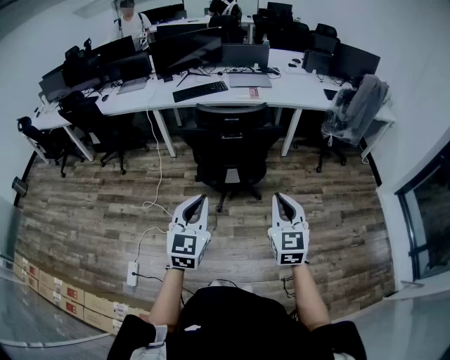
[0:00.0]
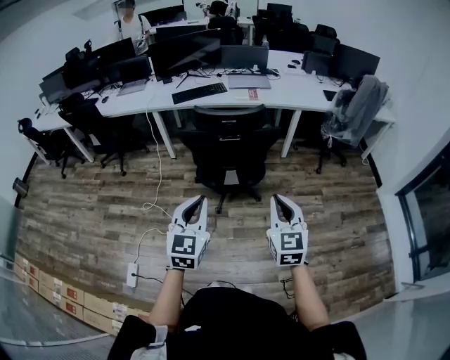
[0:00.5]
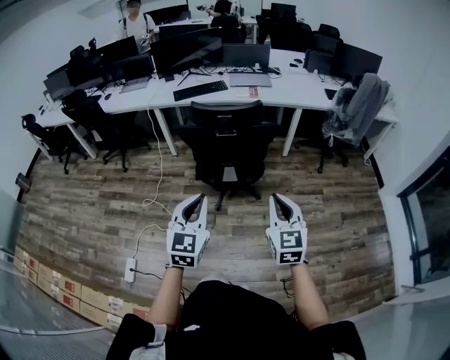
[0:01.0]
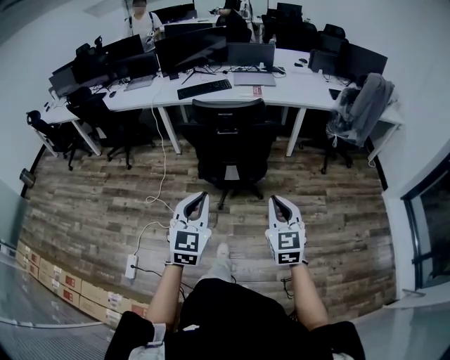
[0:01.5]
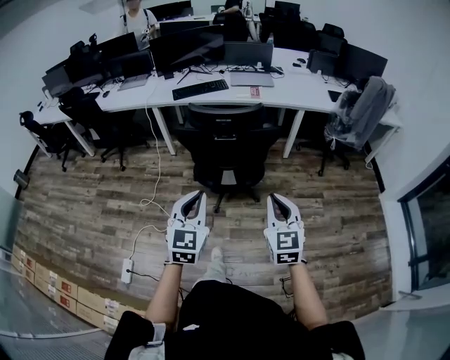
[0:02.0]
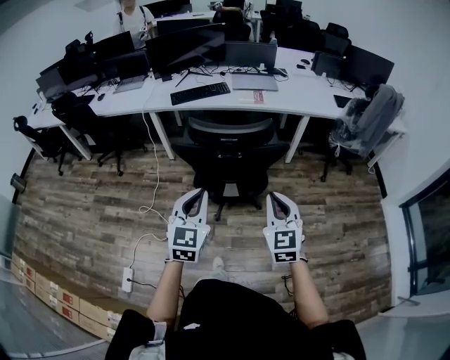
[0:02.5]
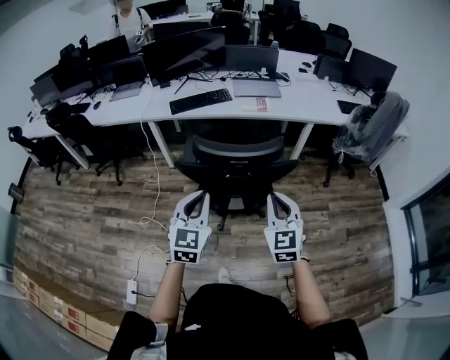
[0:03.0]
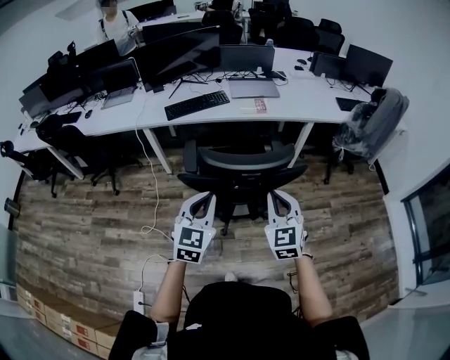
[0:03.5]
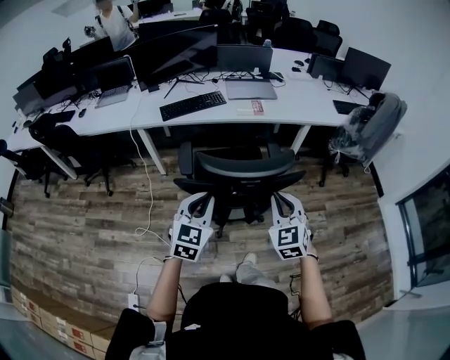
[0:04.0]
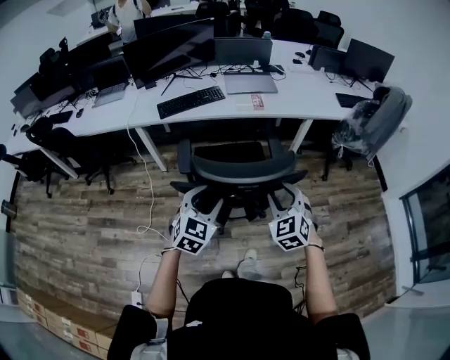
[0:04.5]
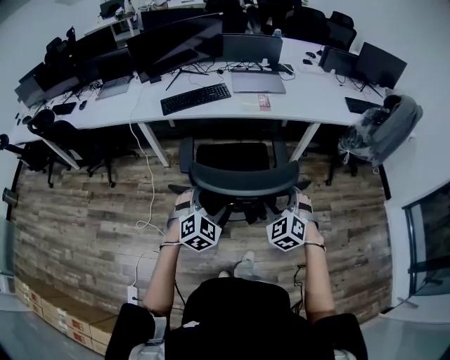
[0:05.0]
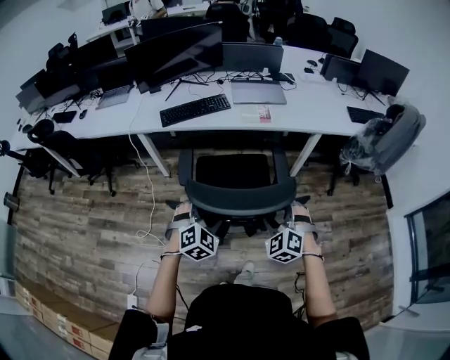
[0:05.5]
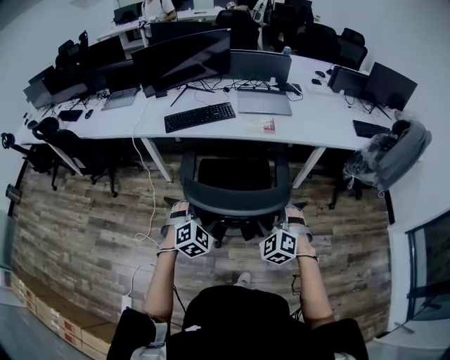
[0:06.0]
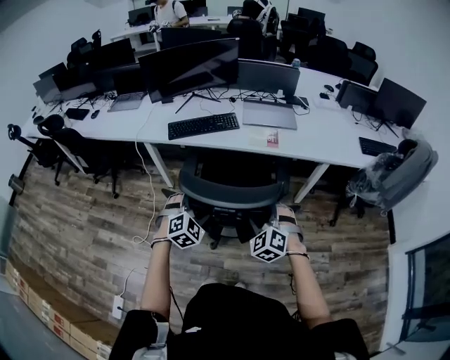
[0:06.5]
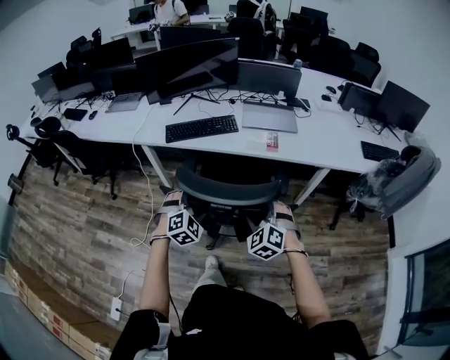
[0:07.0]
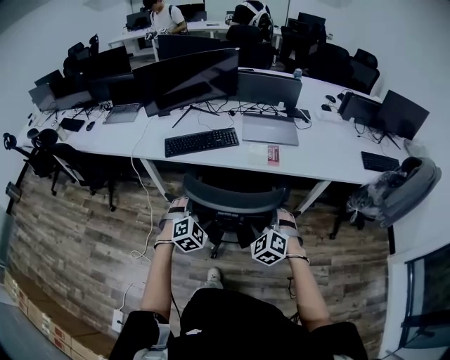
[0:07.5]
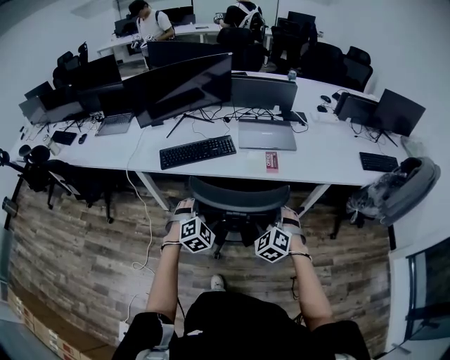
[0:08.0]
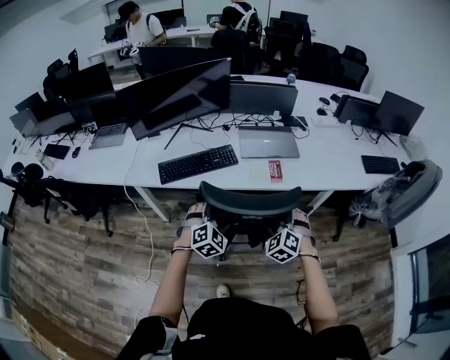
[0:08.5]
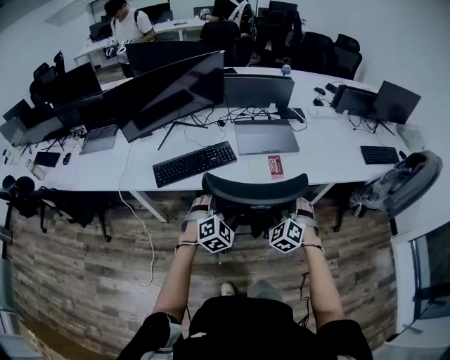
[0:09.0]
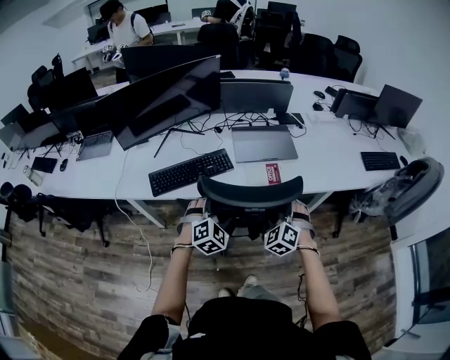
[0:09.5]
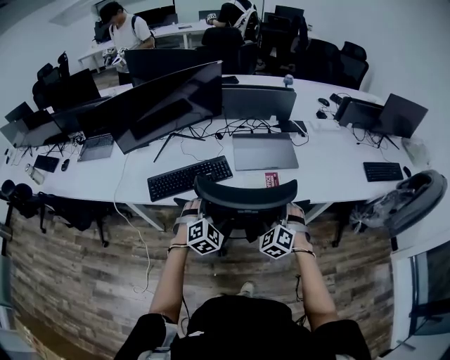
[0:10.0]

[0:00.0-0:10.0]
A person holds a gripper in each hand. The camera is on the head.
0:00.0 to 0:02.0: The left gripper changes place by some 5 cm. The right gripper shifts by approximately 5 cm.
0:02.0 to 0:04.0: The two grippers go roughly 30 cm forward.
0:04.0 to 0:06.0: Both grippers move forward and downward, roughly 20 cm. The right gripper changes its angle by about 30 degrees, and opens its fingers. Meanwhile the left gripper changes its angle by some 40 degrees, and opens.
0:06.0 to 0:08.0: Both grippers travel together forward, roughly 25 cm.
0:08.0 to 0:10.0: Both grippers travel together forward, approximately 20 cm.

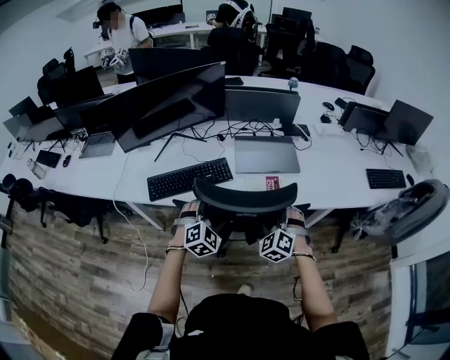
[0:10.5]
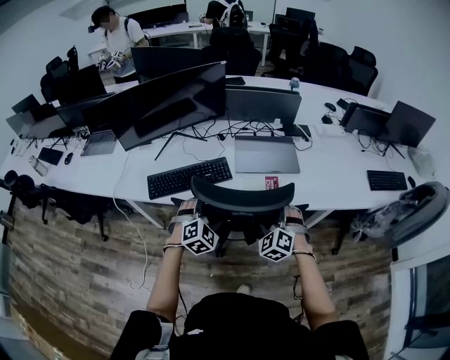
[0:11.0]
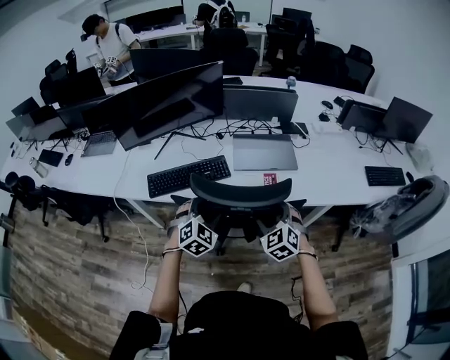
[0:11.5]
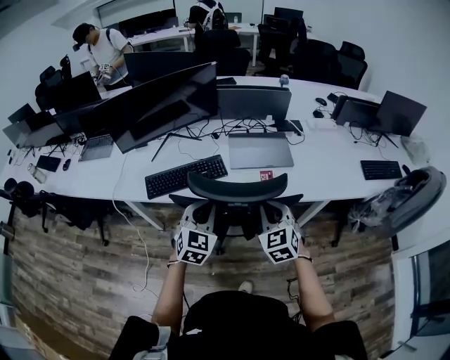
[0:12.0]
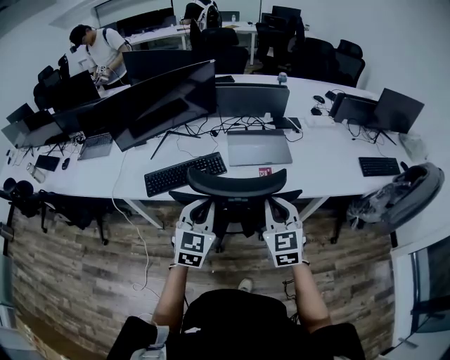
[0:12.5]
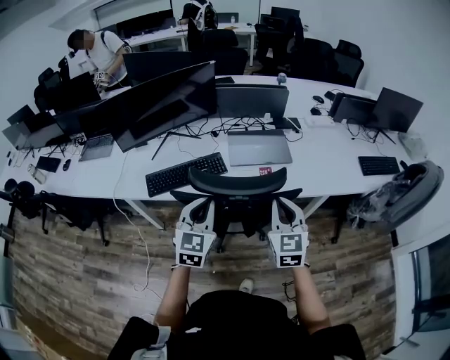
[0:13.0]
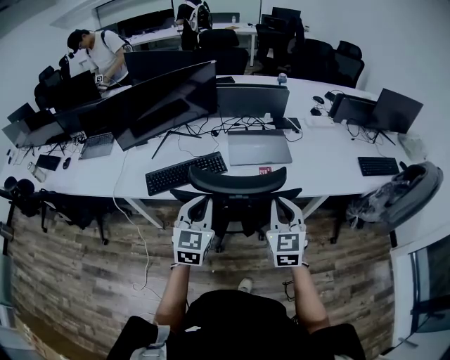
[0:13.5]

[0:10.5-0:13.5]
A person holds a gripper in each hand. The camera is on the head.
0:10.5 to 0:12.0: Both grippers move upward, about 10 cm. The right gripper swivels approximately 30 degrees, and closes up; the left gripper rotates about 30 degrees, and closes up.
0:12.0 to 0:13.5: The left gripper changes place by some 5 cm, while the right gripper shifts roughly 5 cm upward.

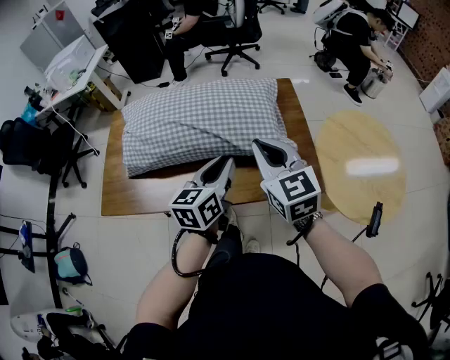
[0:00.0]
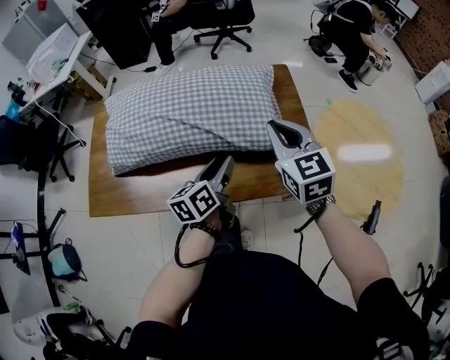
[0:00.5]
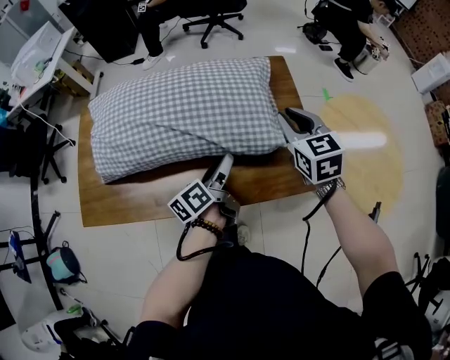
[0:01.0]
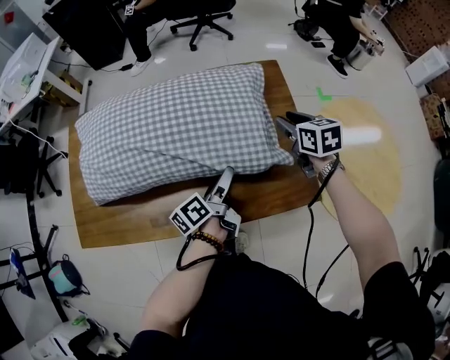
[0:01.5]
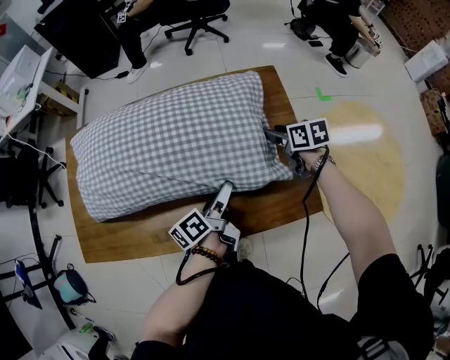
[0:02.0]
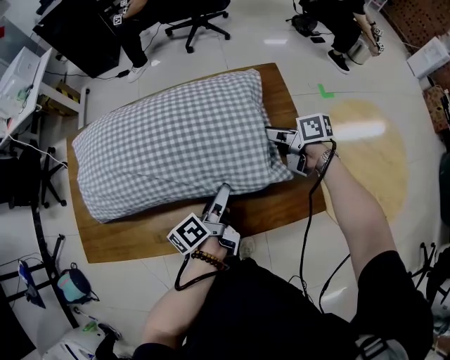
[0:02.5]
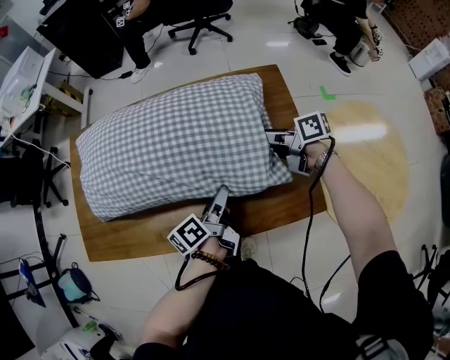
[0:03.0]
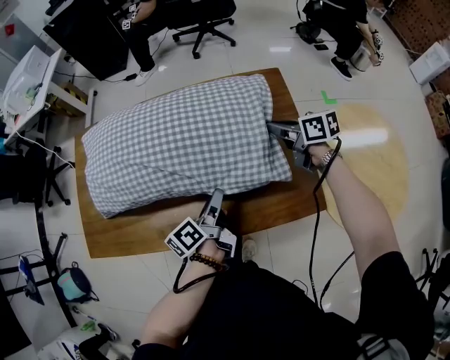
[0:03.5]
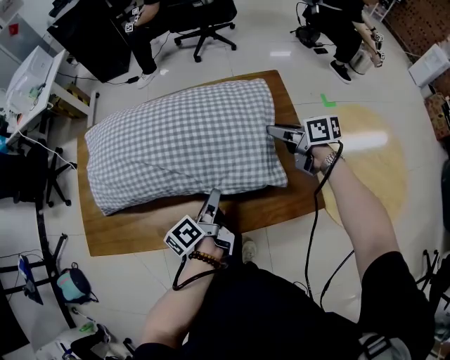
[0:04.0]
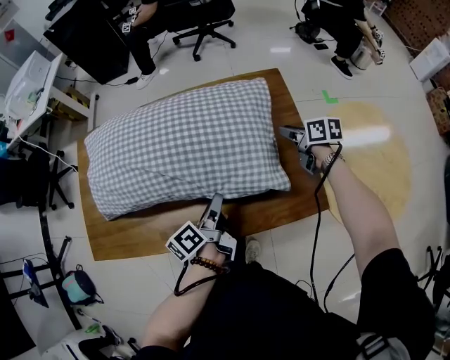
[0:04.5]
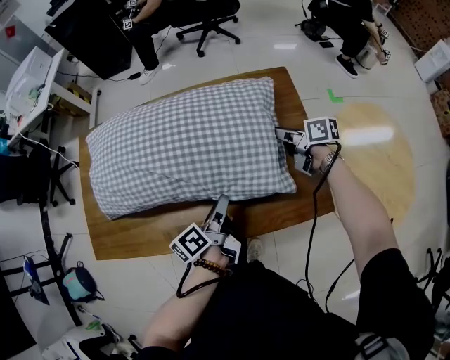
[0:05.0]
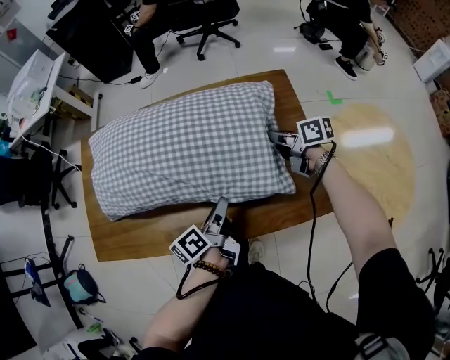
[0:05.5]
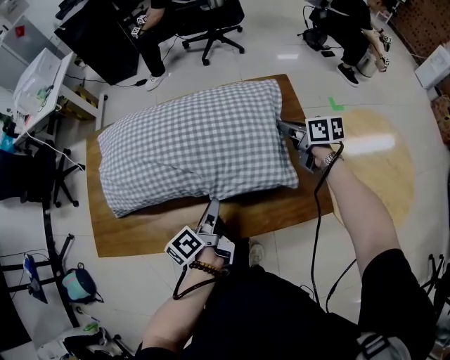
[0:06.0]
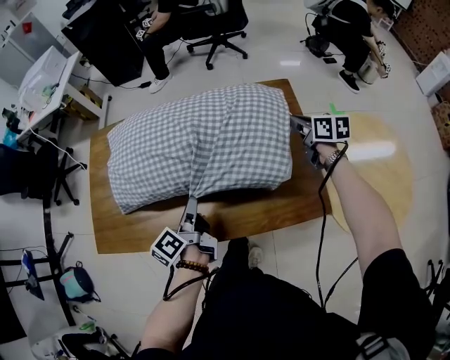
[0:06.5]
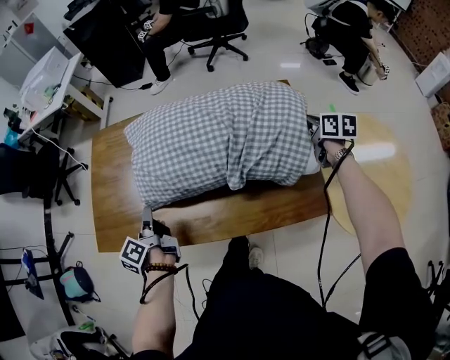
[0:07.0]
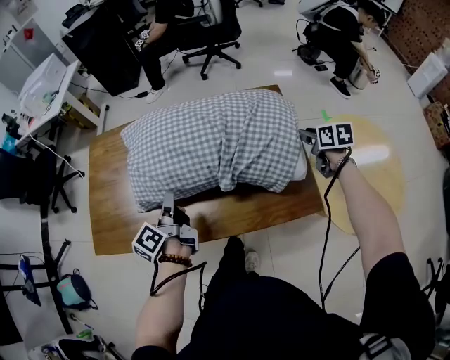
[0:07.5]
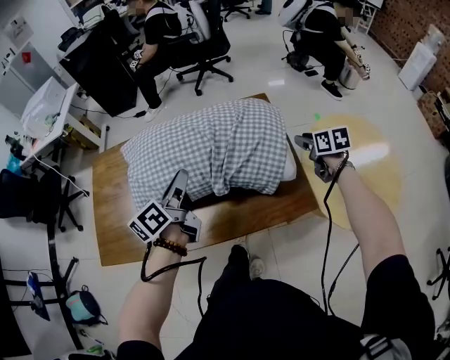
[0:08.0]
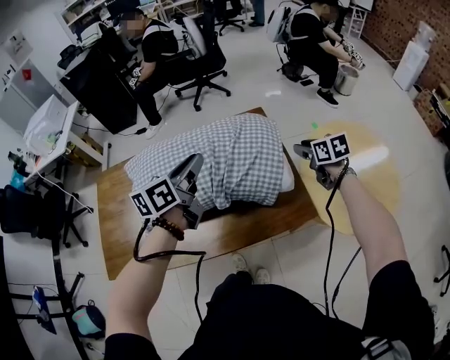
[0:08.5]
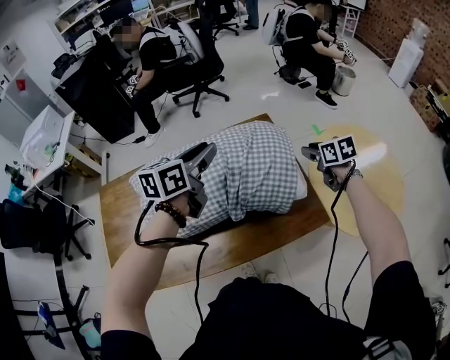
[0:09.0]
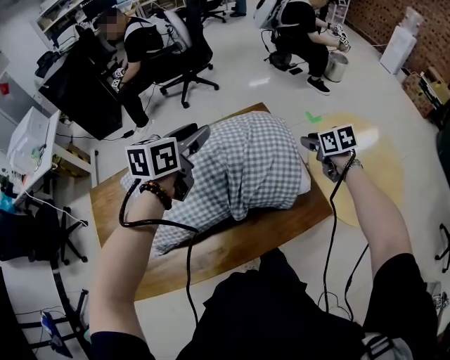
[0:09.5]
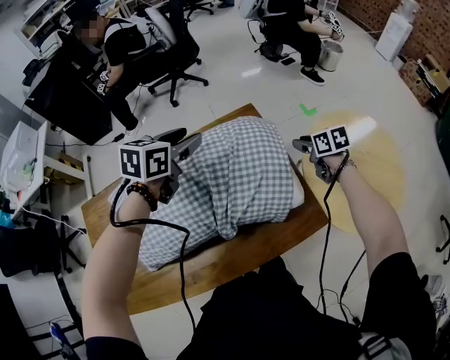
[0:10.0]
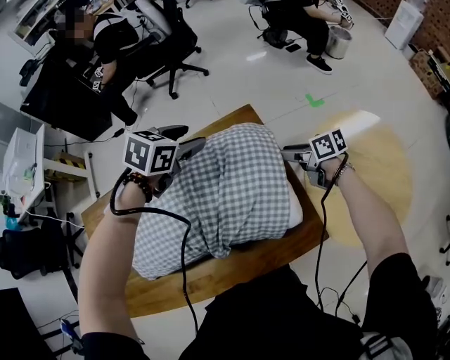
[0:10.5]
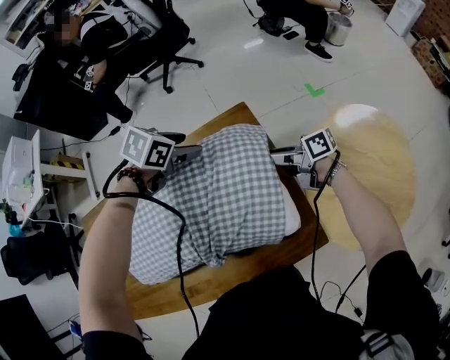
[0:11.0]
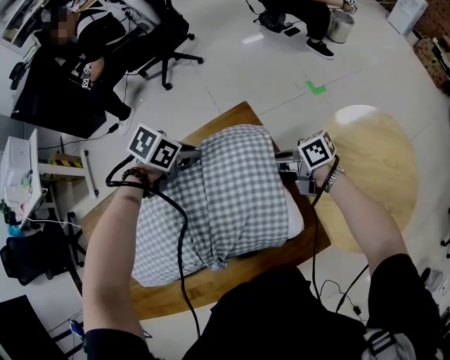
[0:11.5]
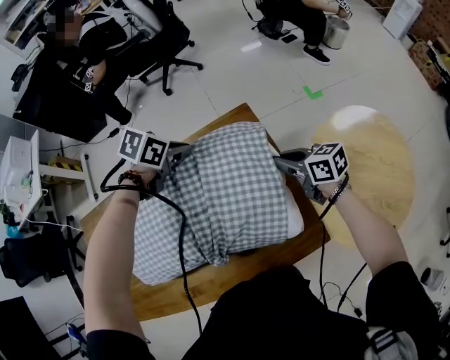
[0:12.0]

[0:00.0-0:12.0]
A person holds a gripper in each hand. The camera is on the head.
0:00.0 to 0:02.0: The left gripper moves forward and downward, approximately 30 cm, rolls counterclockwise, seen from behind, by some 50 degrees, and opens its fingers; the right gripper travels forward and downward by some 40 cm, tips its fingers downward by approximately 30 degrees, and opens up.
0:02.0 to 0:04.0: The right gripper shifts roughly 5 cm upward, and changes its angle by approximately 20 degrees; the left gripper changes place by approximately 5 cm, and closes its fingers.
0:04.0 to 0:06.0: The right gripper moves left and right over approximately 5 cm, changing direction 2 times.
0:06.0 to 0:08.0: The right gripper moves backward and to the right, approximately 20 cm, and rotates roughly 20 degrees, while the left gripper is displaced upward by approximately 15 cm, goes to the left and returns, roughly 20 cm each way, and swivels roughly 30 degrees.
0:08.0 to 0:10.0: The left gripper shifts roughly 25 cm forward, tips its fingers downward by some 30 degrees, and opens; the right gripper moves forward, about 10 cm.
0:10.0 to 0:12.0: The left gripper changes place by approximately 20 cm, changes its angle by roughly 30 degrees, and closes its fingers. Meanwhile the right gripper changes place by approximately 10 cm, and rotates approximately 30 degrees.

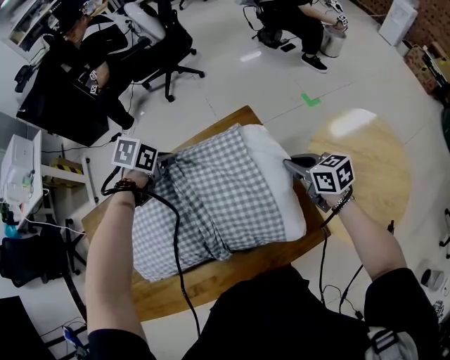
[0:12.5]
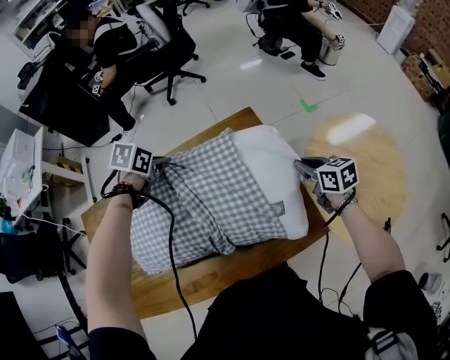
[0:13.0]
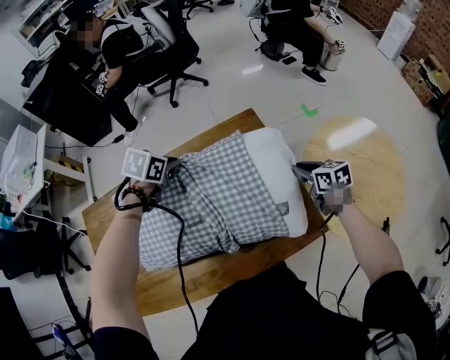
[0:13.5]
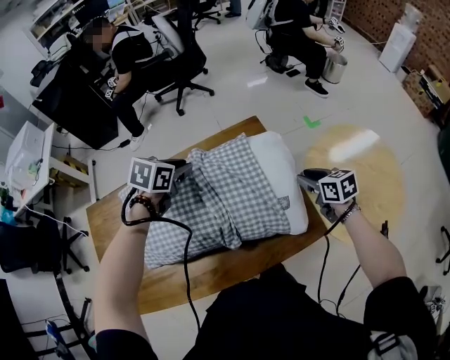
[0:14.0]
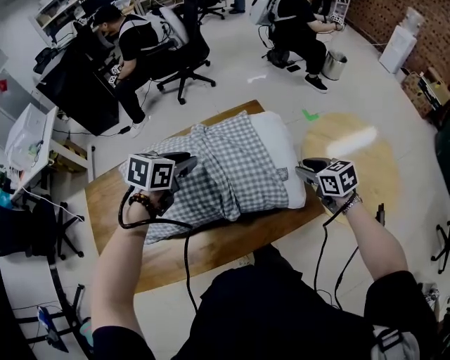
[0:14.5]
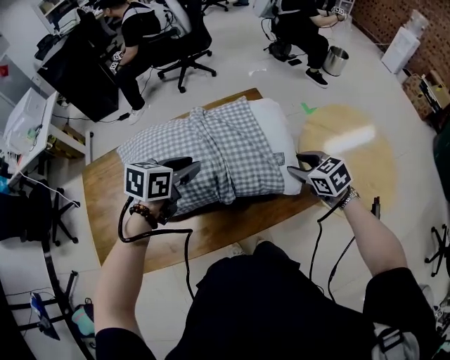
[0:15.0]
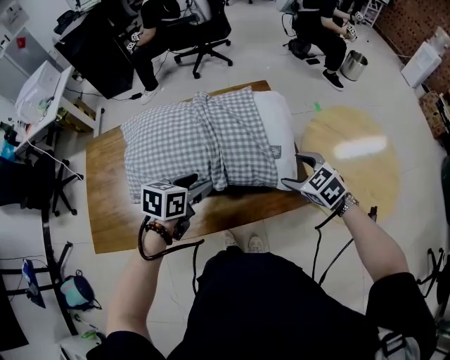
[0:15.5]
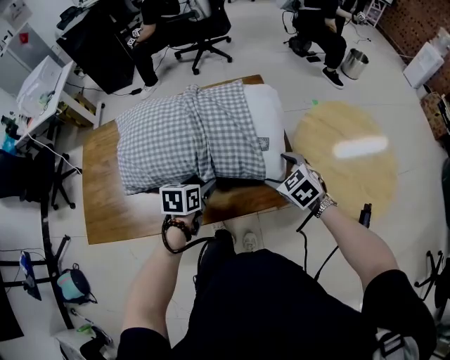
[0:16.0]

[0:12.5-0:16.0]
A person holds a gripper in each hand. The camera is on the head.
0:12.5 to 0:14.5: The grippers both shift backward by approximately 25 cm. The right gripper opens its fingers. Meanwhile the left gripper changes its angle by some 20 degrees.
0:14.5 to 0:16.0: The right gripper goes roughly 10 cm downward and backward, changes its angle by roughly 30 degrees, and opens up. The left gripper heads downward and backward, covering about 20 cm, rotates approximately 30 degrees, and opens up.
